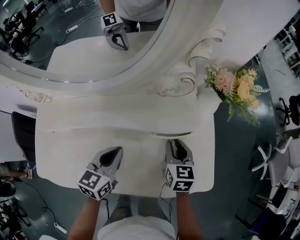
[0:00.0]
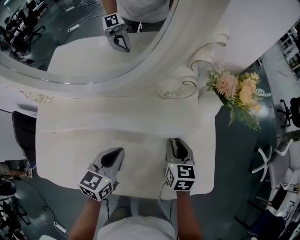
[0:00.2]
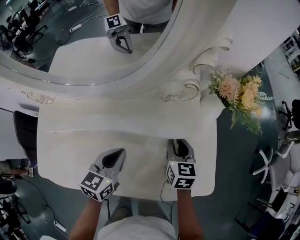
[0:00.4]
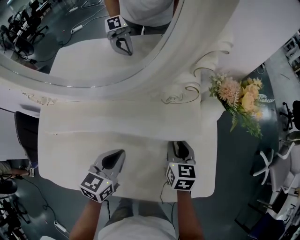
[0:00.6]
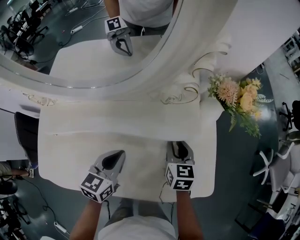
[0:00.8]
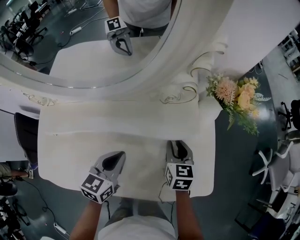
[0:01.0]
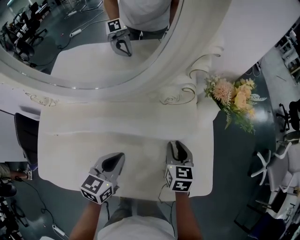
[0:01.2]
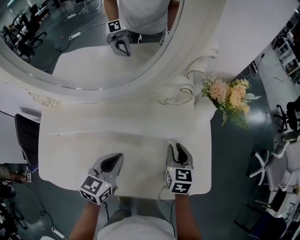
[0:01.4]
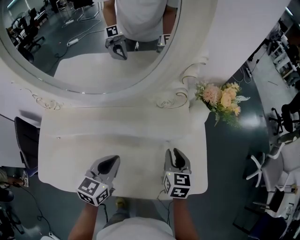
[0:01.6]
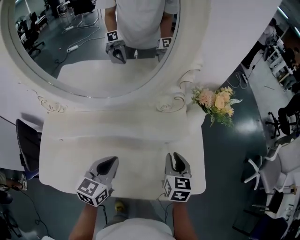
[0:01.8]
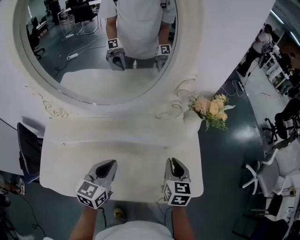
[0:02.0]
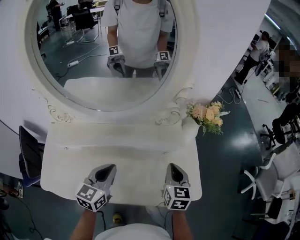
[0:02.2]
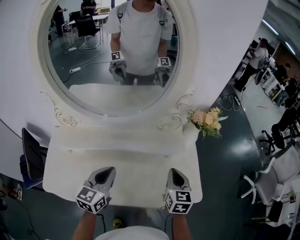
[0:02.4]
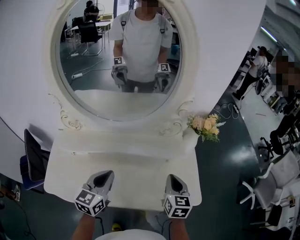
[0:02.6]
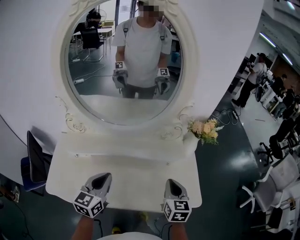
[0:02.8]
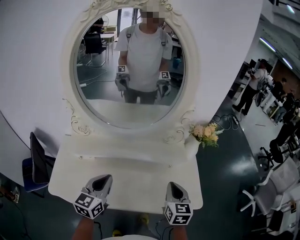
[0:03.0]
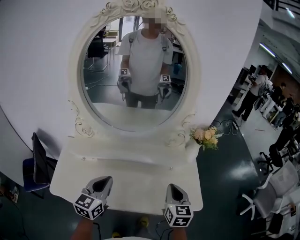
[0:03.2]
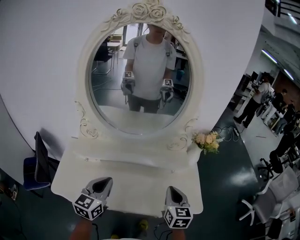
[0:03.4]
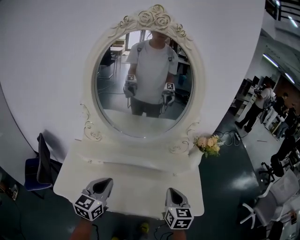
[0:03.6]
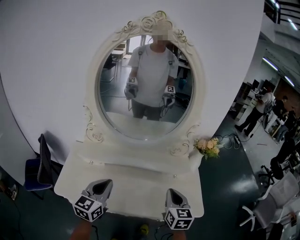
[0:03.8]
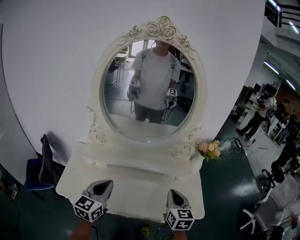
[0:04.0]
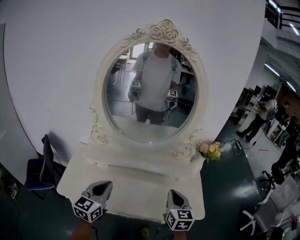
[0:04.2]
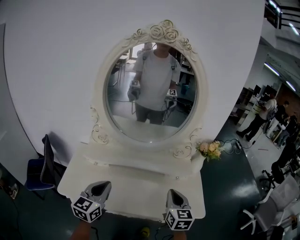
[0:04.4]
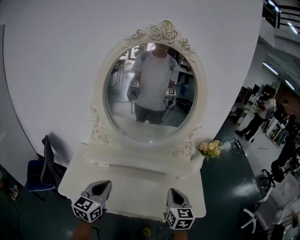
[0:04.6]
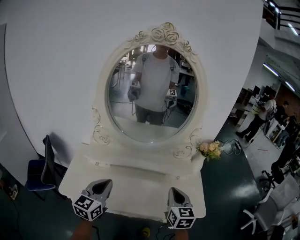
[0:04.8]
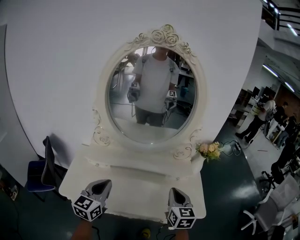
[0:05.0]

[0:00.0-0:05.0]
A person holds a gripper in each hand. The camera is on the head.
0.0 to 1.6 s: The two grippers go approximately 5 cm upward.
1.6 to 3.4 s: The left gripper travels upward, backward and to the left by approximately 25 cm, while the right gripper shifts approximately 20 cm upward and backward.
3.4 to 5.0 s: The right gripper shifts by about 5 cm. The left gripper shifts some 10 cm backward and to the left.

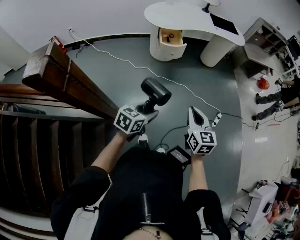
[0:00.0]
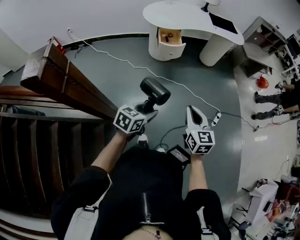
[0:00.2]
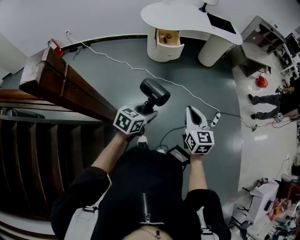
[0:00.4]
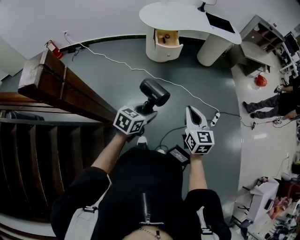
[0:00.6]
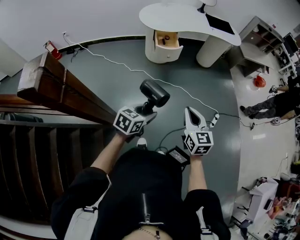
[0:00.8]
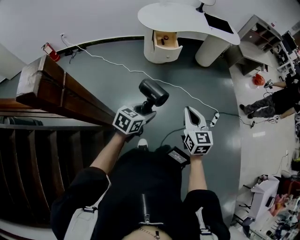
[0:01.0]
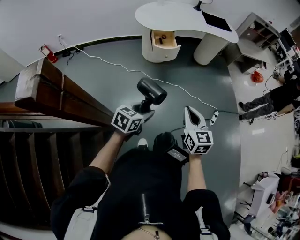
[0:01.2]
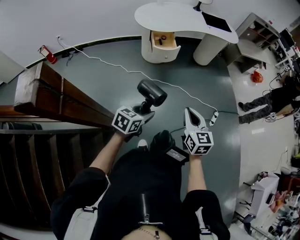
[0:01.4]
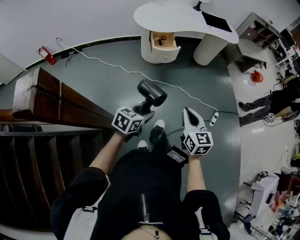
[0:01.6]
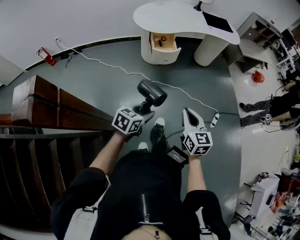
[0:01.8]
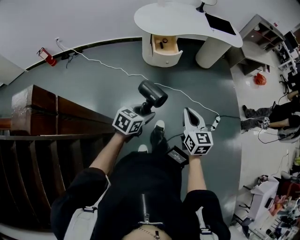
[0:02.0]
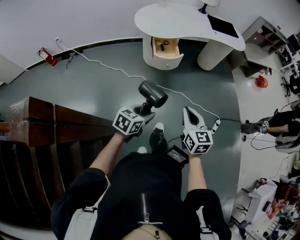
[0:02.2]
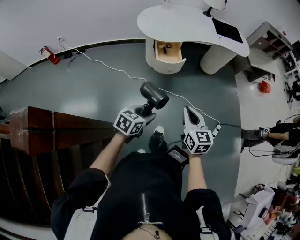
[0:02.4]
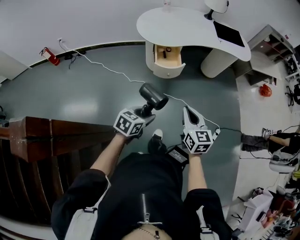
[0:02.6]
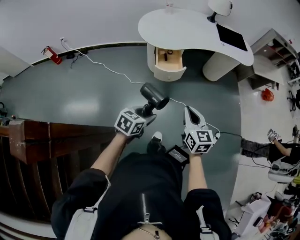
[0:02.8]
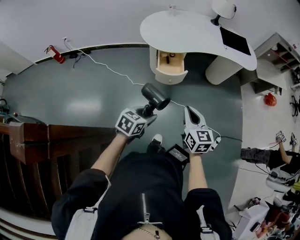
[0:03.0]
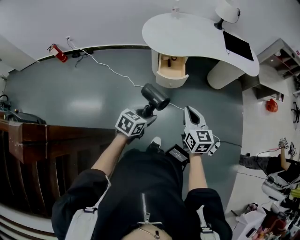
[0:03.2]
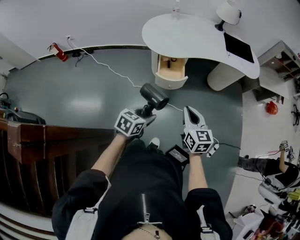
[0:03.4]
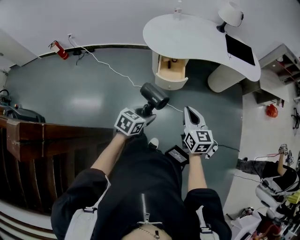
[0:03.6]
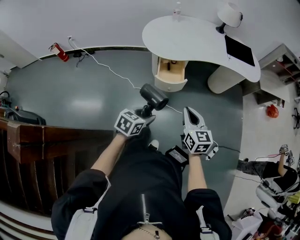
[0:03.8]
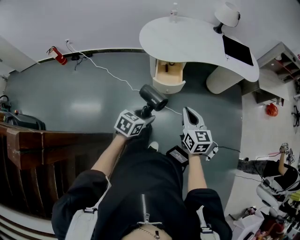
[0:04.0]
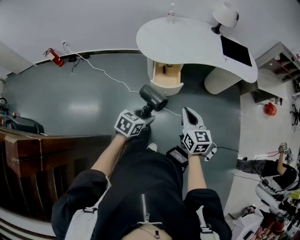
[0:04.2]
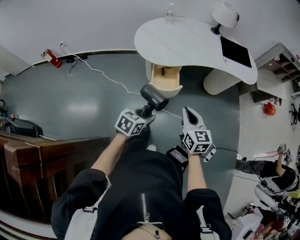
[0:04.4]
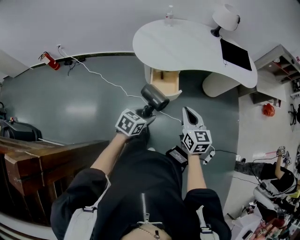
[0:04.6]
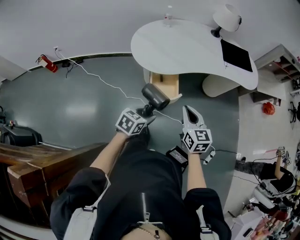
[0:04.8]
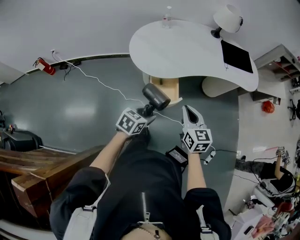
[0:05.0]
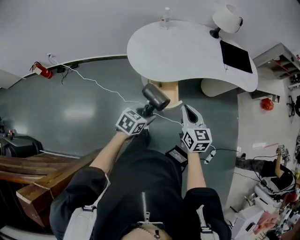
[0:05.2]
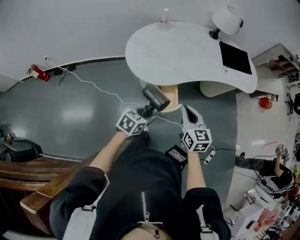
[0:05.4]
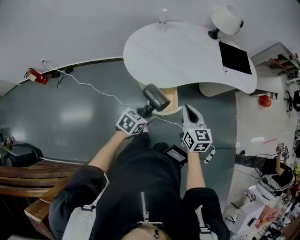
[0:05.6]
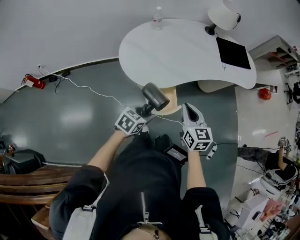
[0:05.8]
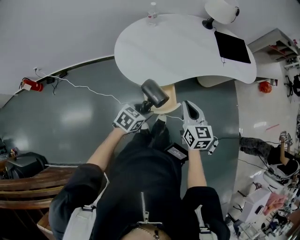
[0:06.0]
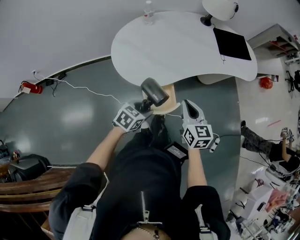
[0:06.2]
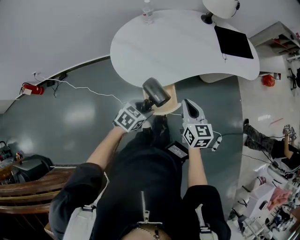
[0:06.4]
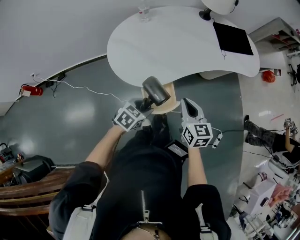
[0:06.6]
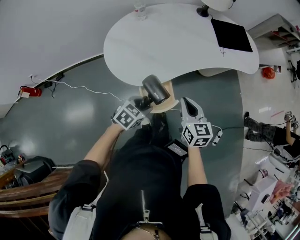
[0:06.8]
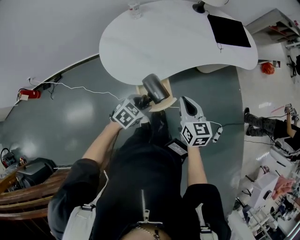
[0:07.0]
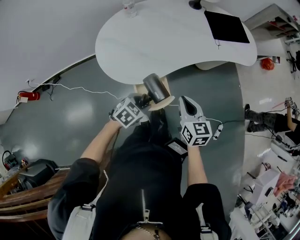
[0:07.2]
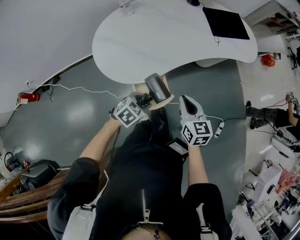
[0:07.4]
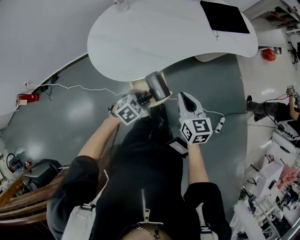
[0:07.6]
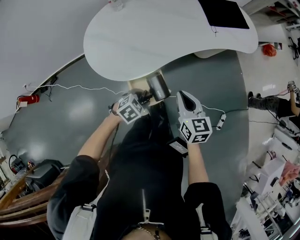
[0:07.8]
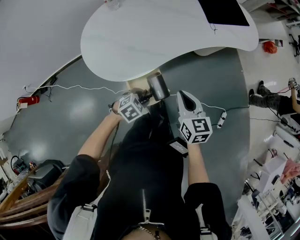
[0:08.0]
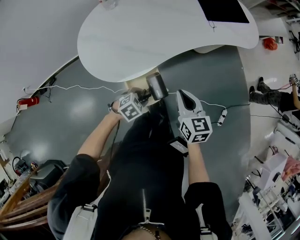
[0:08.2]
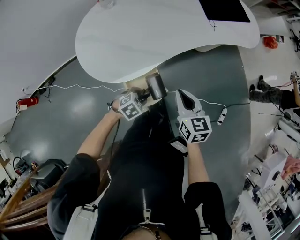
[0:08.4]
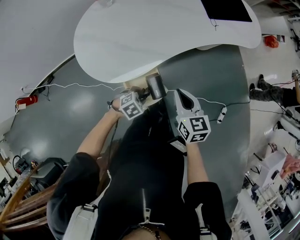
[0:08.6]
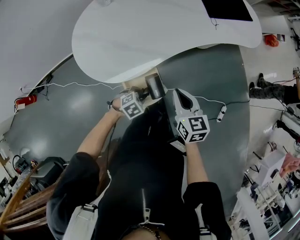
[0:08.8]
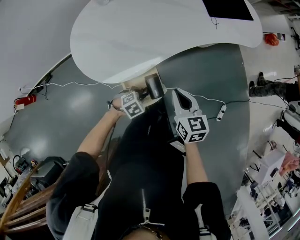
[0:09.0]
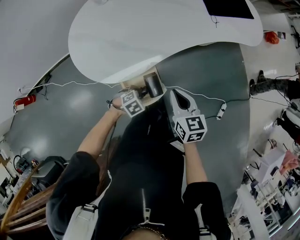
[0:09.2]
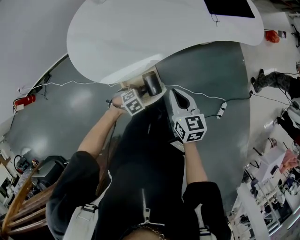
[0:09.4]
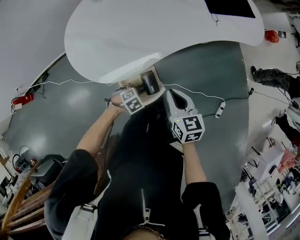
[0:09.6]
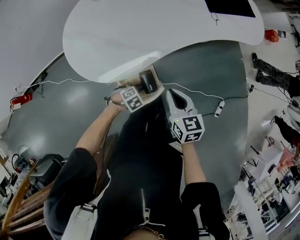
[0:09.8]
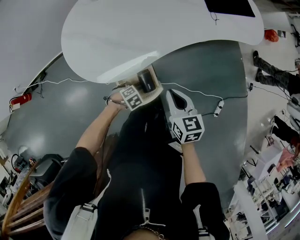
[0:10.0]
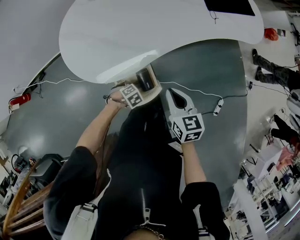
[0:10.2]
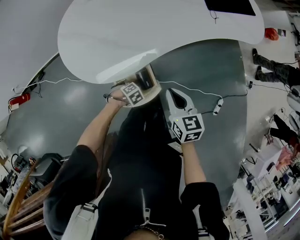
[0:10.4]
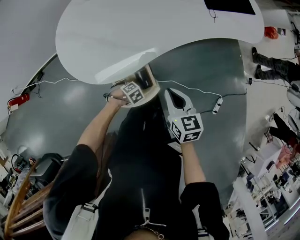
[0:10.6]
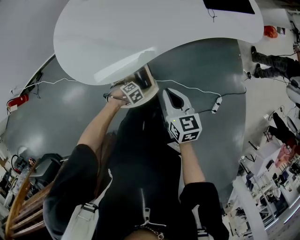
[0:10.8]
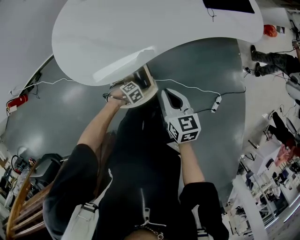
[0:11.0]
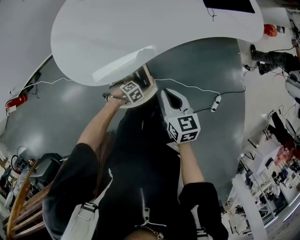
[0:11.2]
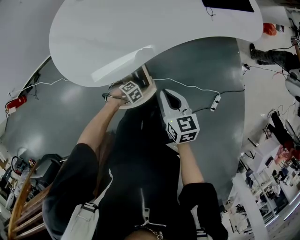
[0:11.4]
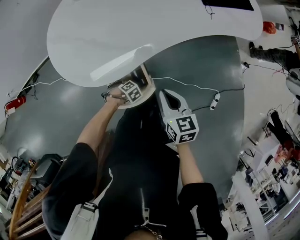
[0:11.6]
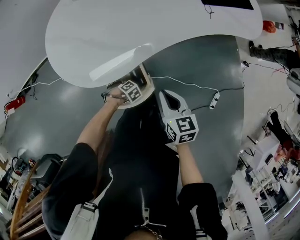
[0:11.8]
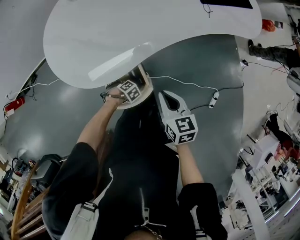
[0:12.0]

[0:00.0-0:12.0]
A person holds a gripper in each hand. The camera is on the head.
0.0 to 1.6 s: The left gripper travels forward and to the left by roughly 10 cm; the right gripper goes approximately 5 cm to the left.
1.6 to 3.0 s: The grippers both shift forward by about 25 cm.
3.0 to 4.4 s: The two grippers go about 15 cm forward.
4.4 to 6.0 s: The grippers both shift forward and to the left by roughly 25 cm.
6.0 to 7.6 s: The right gripper moves downward and to the right, roughly 10 cm. The left gripper goes roughly 10 cm forward, downward and to the right, and rotates some 30 degrees.
7.6 to 9.0 s: The right gripper ends up approximately 5 cm from where it was. The left gripper moves downward, about 10 cm.
9.0 to 10.4 s: The left gripper moves downward, roughly 10 cm.
10.4 to 12.0 s: The left gripper moves downward, roughly 5 cm.

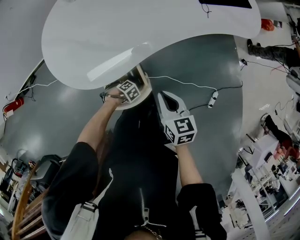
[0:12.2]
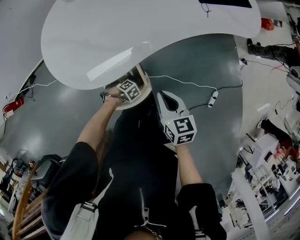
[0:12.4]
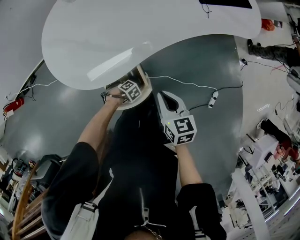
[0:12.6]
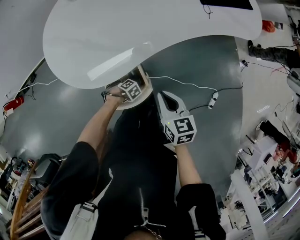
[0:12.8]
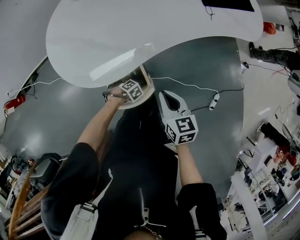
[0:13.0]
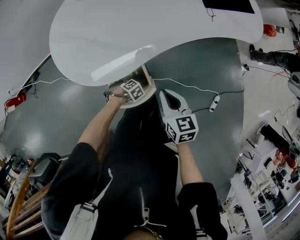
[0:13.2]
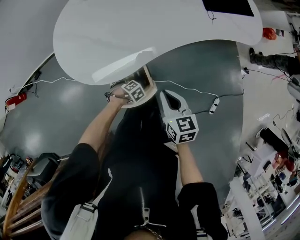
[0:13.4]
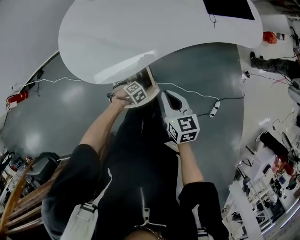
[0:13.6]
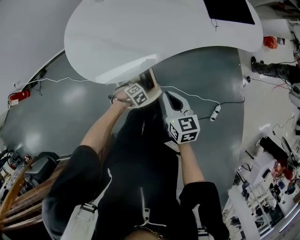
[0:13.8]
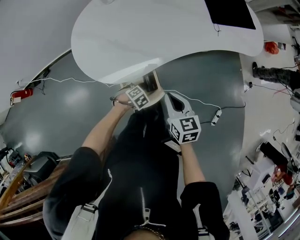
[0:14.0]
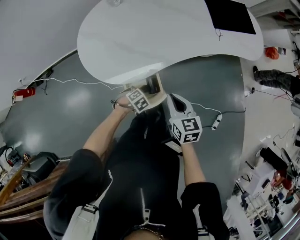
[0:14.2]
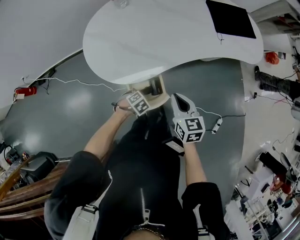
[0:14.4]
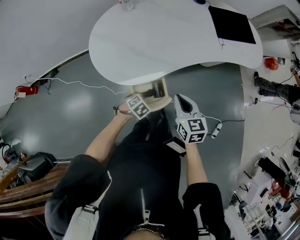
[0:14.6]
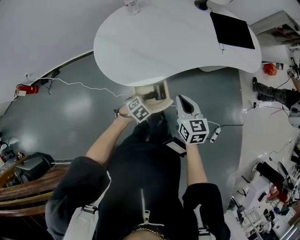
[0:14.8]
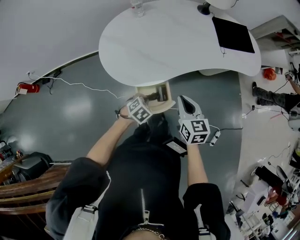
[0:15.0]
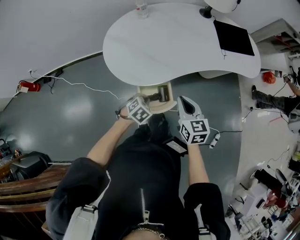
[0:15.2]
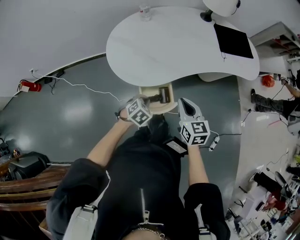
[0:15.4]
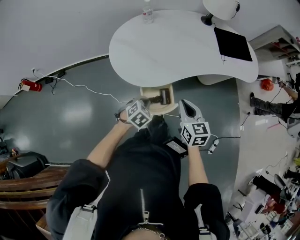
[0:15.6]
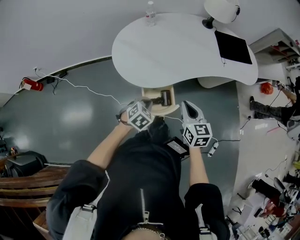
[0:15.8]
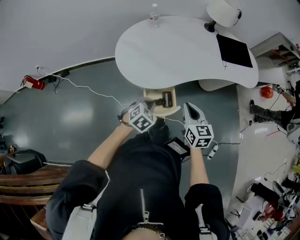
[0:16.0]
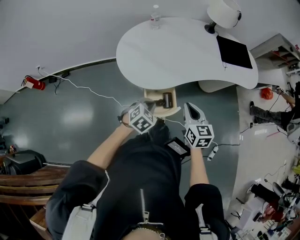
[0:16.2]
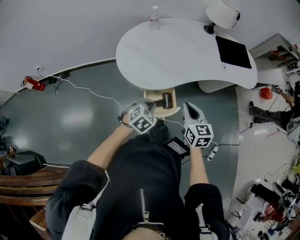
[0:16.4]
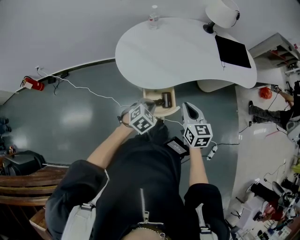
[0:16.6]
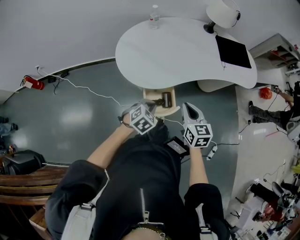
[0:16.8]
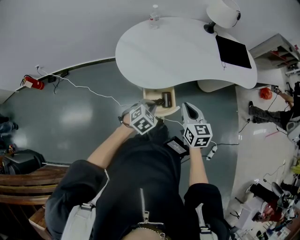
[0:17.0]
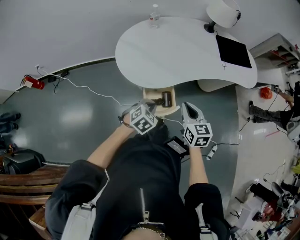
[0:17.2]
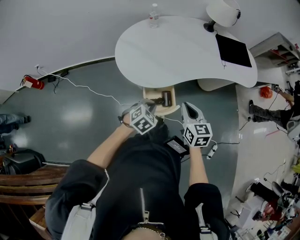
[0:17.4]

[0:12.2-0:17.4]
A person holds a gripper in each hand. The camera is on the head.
12.2 to 14.0 s: The left gripper shifts approximately 10 cm upward, and closes up.
14.0 to 15.6 s: The left gripper is displaced upward by about 20 cm, and changes its angle by approximately 30 degrees. Meanwhile the right gripper shifts some 10 cm upward.
15.6 to 17.4 s: The left gripper moves roughly 5 cm.

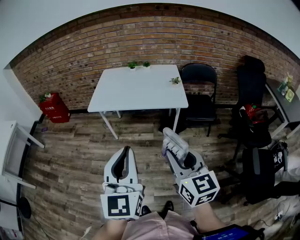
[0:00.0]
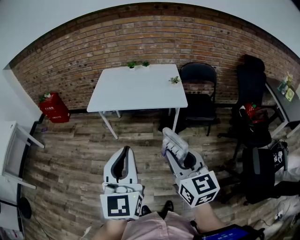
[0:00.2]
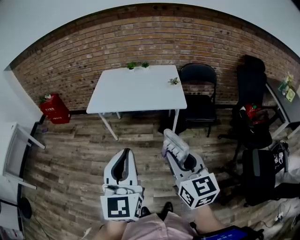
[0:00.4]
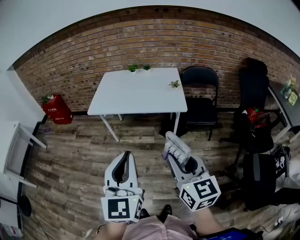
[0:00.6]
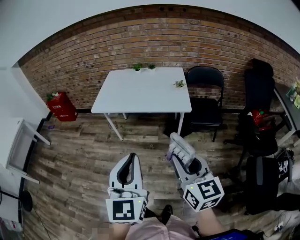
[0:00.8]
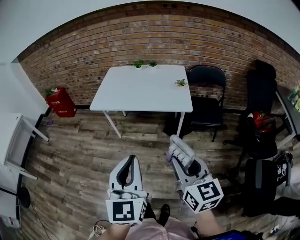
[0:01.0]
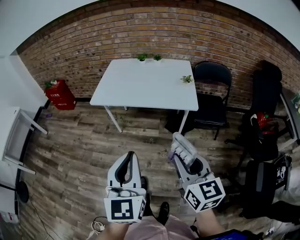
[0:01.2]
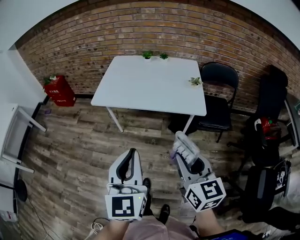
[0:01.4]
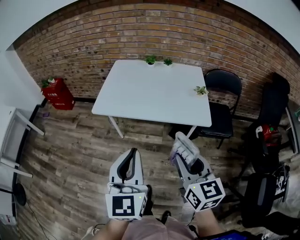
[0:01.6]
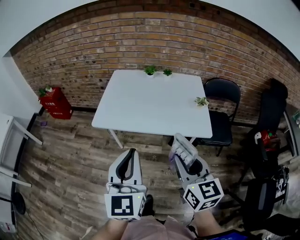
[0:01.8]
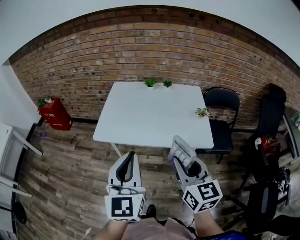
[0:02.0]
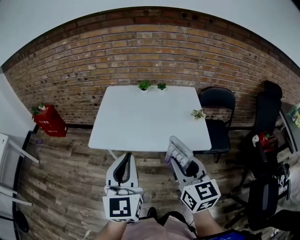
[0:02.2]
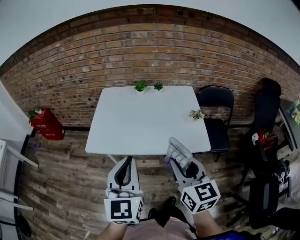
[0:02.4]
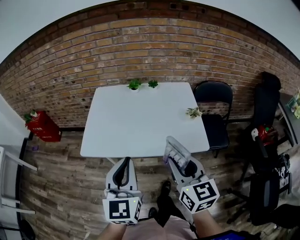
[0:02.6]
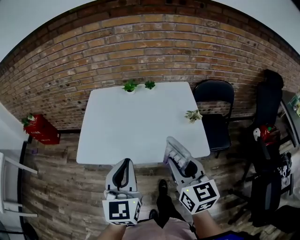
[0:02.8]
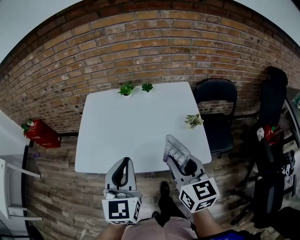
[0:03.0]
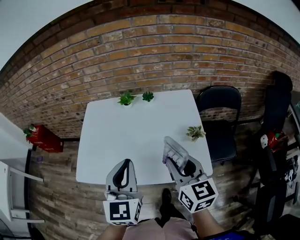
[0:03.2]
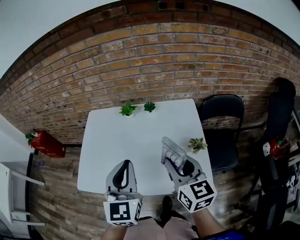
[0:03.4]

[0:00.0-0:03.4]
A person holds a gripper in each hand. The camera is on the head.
0.0 to 1.6 s: Both grippers move forward, some 20 cm.
1.6 to 3.4 s: Both grippers travel together forward, roughly 35 cm.
